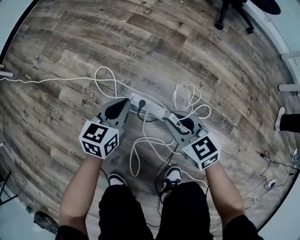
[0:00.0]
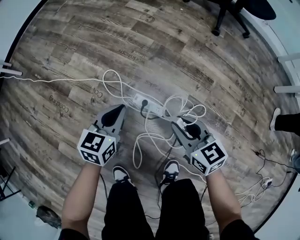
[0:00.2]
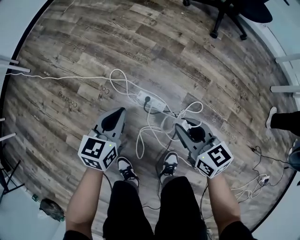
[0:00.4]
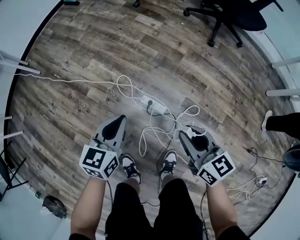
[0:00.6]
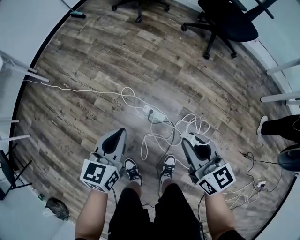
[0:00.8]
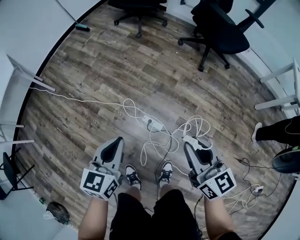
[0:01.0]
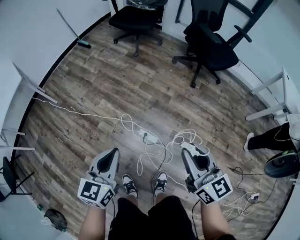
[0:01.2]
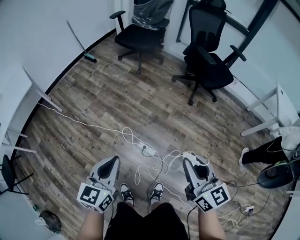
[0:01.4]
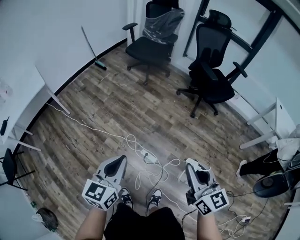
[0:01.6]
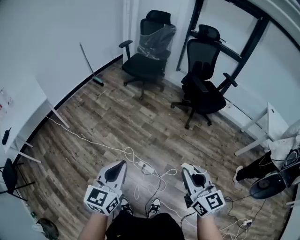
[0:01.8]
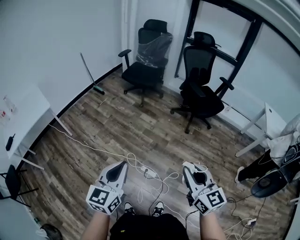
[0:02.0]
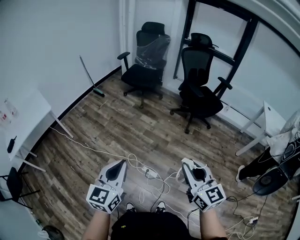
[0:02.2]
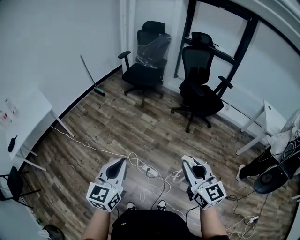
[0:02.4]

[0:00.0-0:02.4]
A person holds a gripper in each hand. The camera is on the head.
0:00.0 to 0:01.2: Both grippers move upward, approximately 70 cm. The right gripper swivels approximately 30 degrees.
0:01.2 to 0:02.4: The grippers both shift upward by approximately 25 cm.

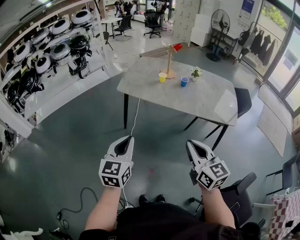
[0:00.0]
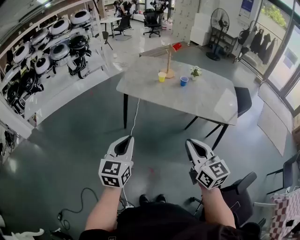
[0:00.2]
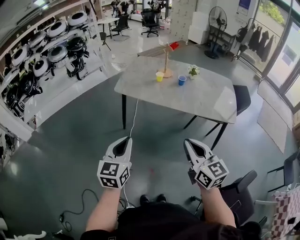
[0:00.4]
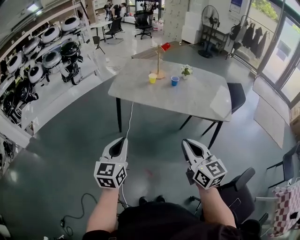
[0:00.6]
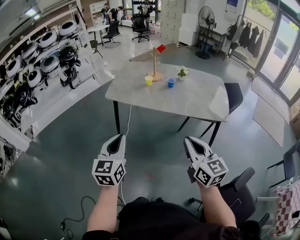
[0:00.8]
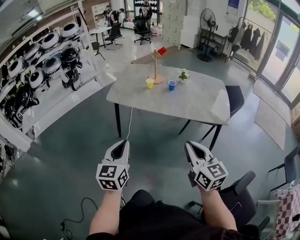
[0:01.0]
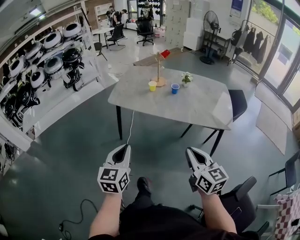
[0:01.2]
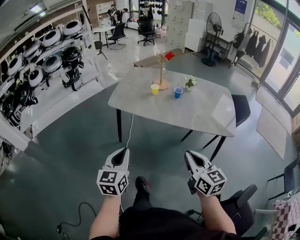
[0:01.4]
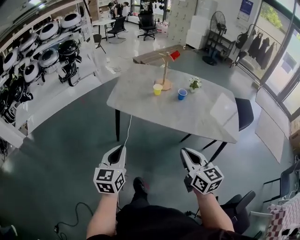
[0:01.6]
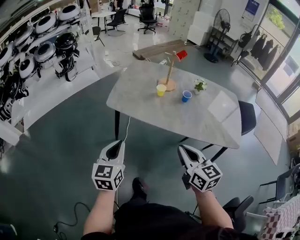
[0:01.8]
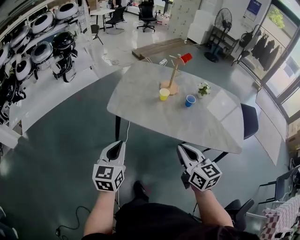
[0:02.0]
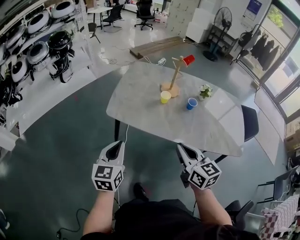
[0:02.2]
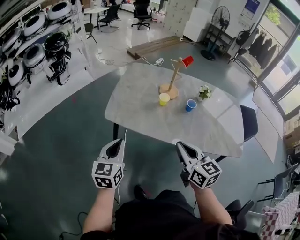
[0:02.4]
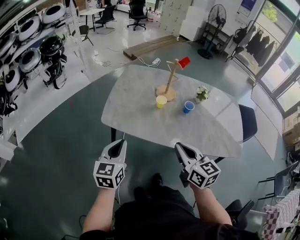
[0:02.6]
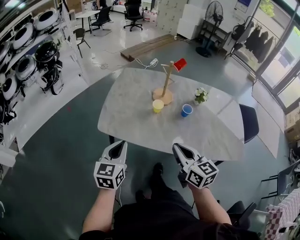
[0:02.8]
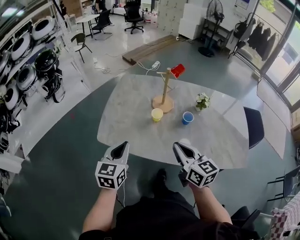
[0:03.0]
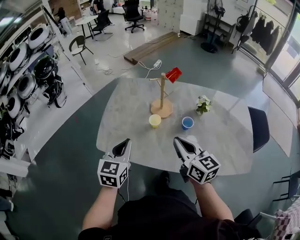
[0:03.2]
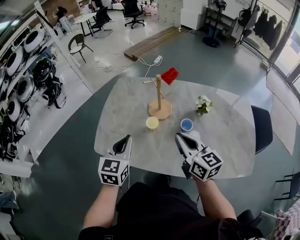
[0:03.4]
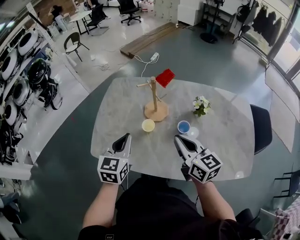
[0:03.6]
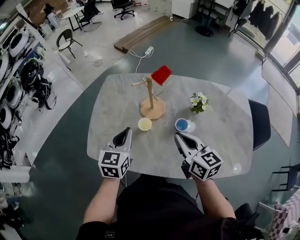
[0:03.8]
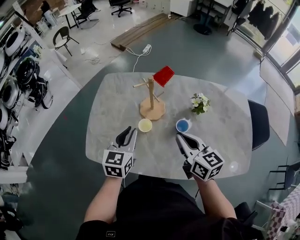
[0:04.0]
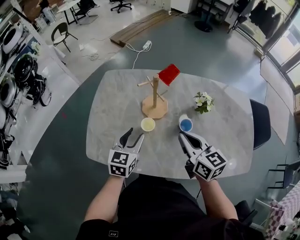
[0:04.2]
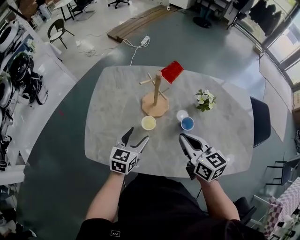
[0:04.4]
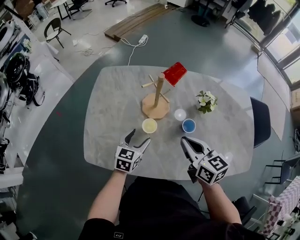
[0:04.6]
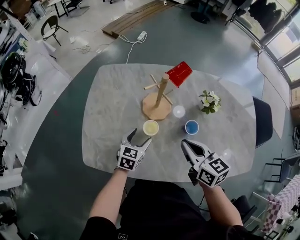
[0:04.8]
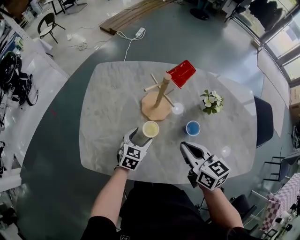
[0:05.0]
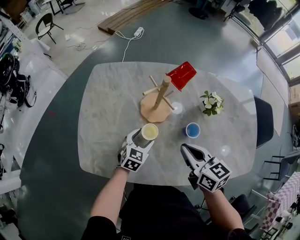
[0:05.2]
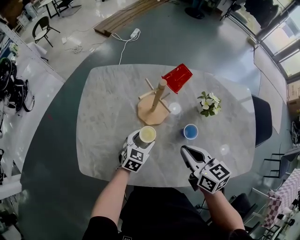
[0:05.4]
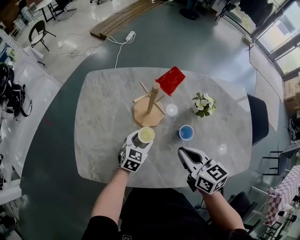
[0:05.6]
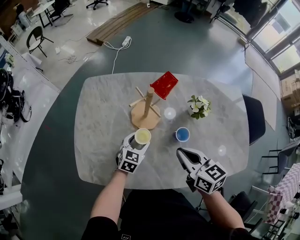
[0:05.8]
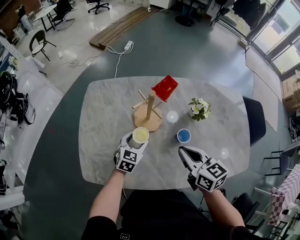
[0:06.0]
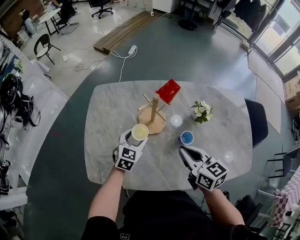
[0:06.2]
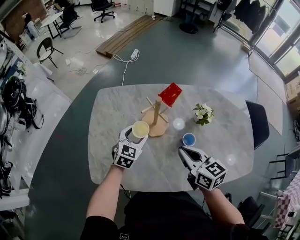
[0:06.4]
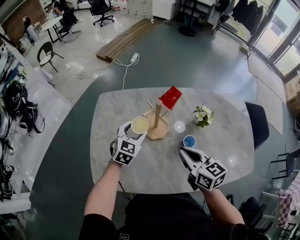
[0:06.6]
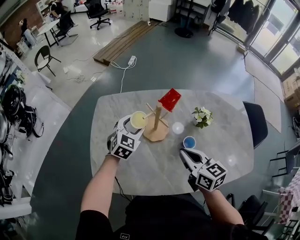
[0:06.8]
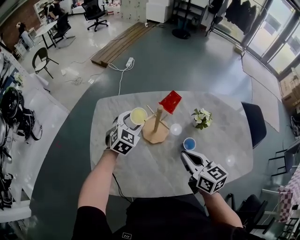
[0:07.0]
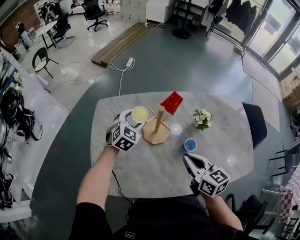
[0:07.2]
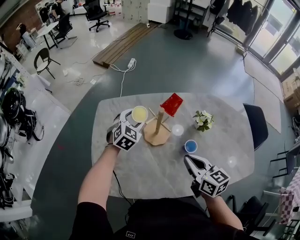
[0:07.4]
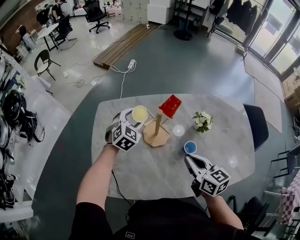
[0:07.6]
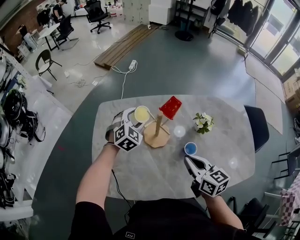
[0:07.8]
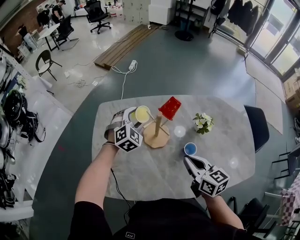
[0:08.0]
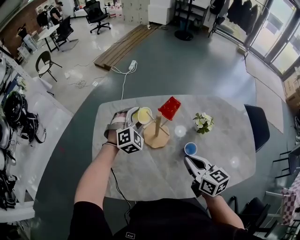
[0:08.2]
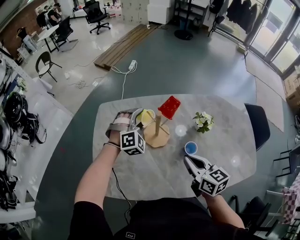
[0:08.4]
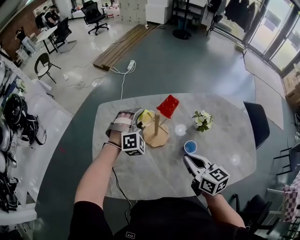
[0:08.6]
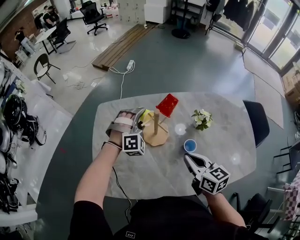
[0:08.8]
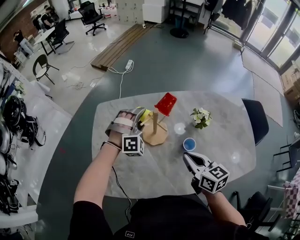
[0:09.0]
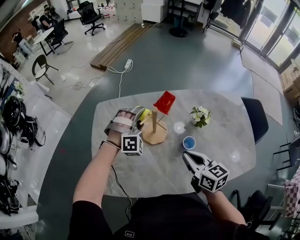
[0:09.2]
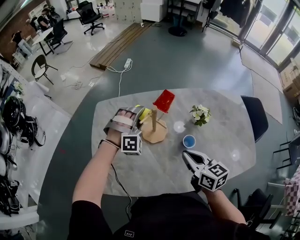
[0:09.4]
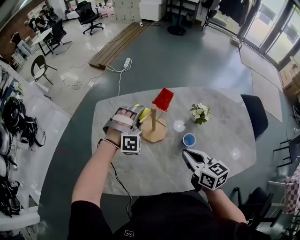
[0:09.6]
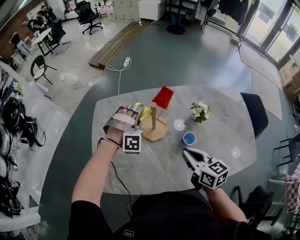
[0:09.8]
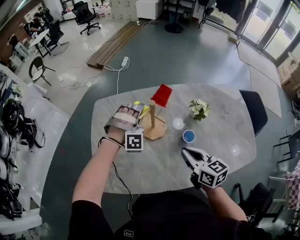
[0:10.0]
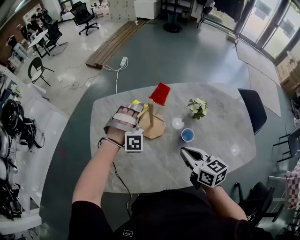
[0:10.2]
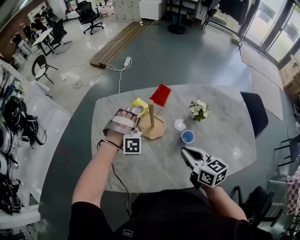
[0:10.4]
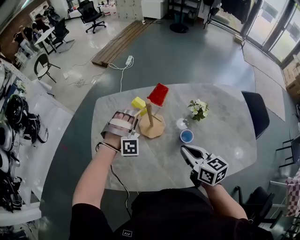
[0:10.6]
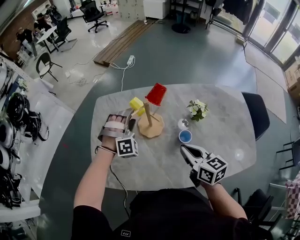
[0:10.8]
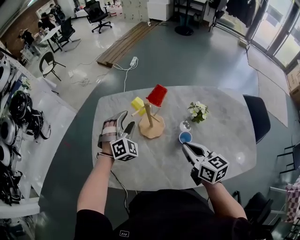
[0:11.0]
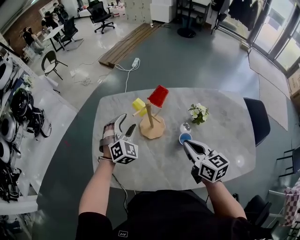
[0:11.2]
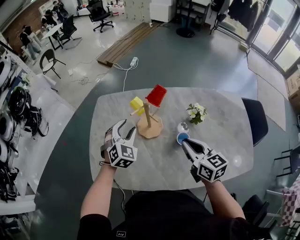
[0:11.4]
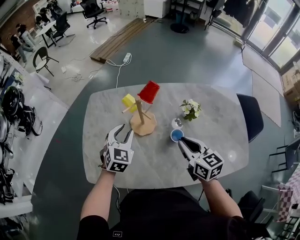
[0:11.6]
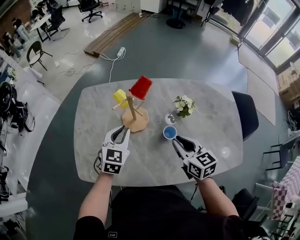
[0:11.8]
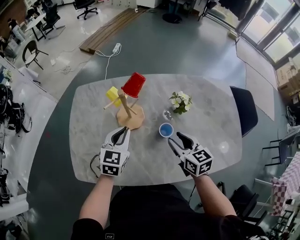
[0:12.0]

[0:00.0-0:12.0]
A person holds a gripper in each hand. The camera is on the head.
0:00.0 to 0:01.6: The grippers both shift forward by about 15 cm.
0:01.6 to 0:03.0: The grippers both shift forward by roughly 35 cm.
0:03.0 to 0:04.4: The left gripper travels forward, downward and to the right by roughly 25 cm, and opens its fingers, while the right gripper travels forward and to the right by about 20 cm.
0:04.4 to 0:06.0: The left gripper shifts roughly 10 cm downward and forward.
0:06.0 to 0:07.6: The left gripper travels forward and upward by roughly 20 cm, and swivels approximately 30 degrees.
0:07.6 to 0:09.0: The left gripper moves about 5 cm, and twists approximately 50 degrees clockwise, seen from behind.
0:09.0 to 0:10.4: The left gripper rotates about 30 degrees.
0:10.4 to 0:12.0: The right gripper moves to the right and downward, some 10 cm, and opens up; the left gripper goes about 10 cm backward, rotates around the line of its fingers by approximately 100 degrees, counterclockwise from behind, and closes up.

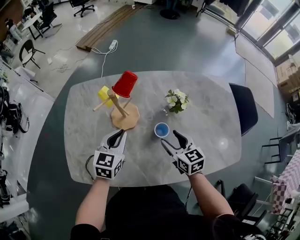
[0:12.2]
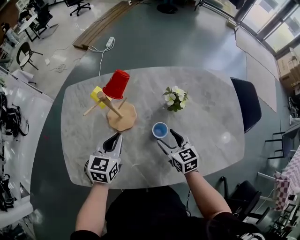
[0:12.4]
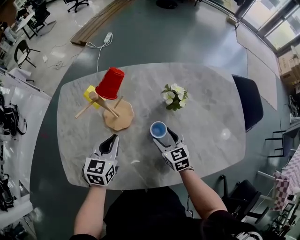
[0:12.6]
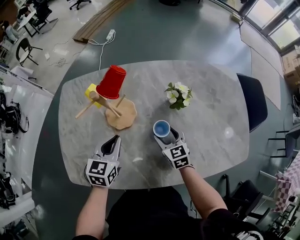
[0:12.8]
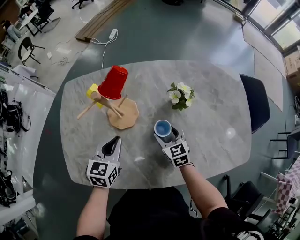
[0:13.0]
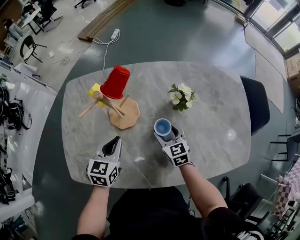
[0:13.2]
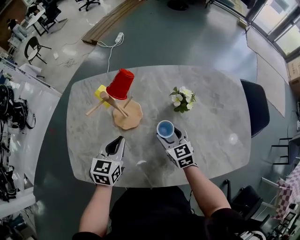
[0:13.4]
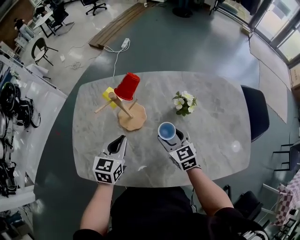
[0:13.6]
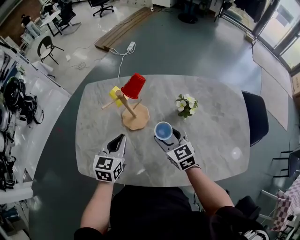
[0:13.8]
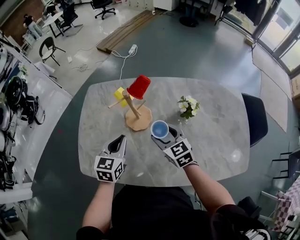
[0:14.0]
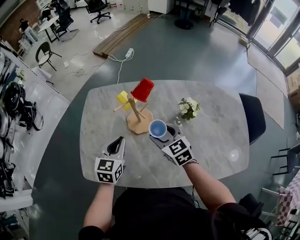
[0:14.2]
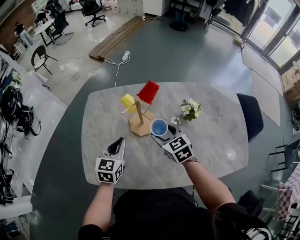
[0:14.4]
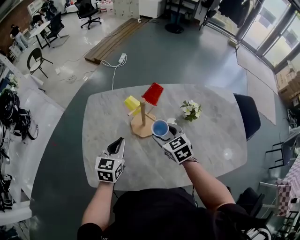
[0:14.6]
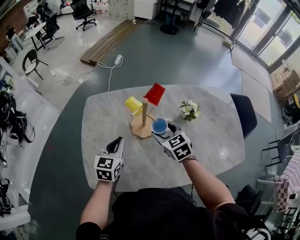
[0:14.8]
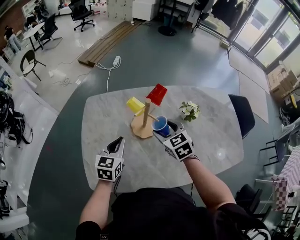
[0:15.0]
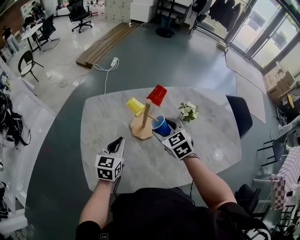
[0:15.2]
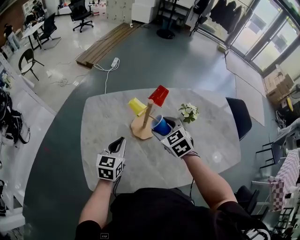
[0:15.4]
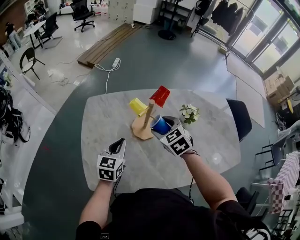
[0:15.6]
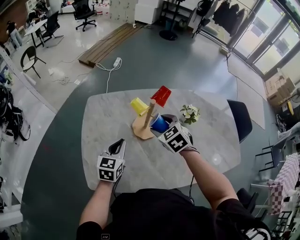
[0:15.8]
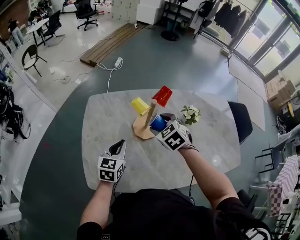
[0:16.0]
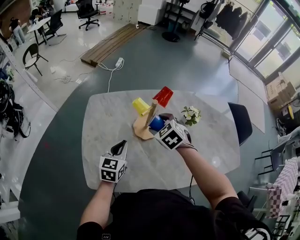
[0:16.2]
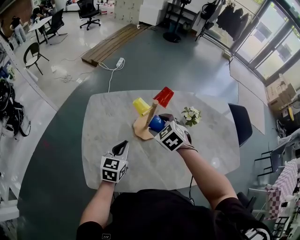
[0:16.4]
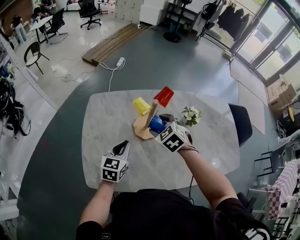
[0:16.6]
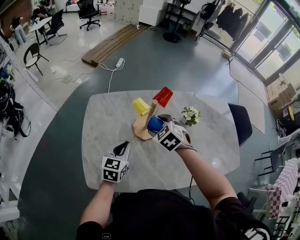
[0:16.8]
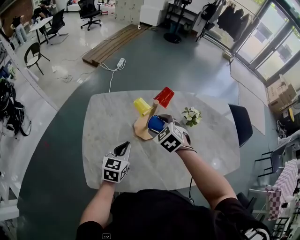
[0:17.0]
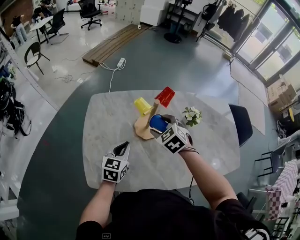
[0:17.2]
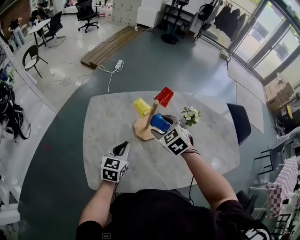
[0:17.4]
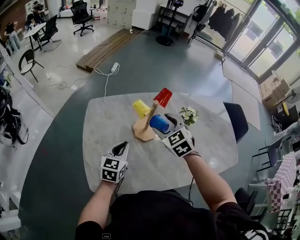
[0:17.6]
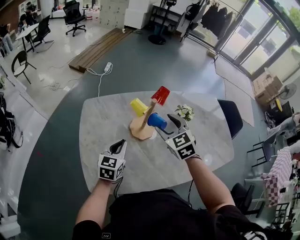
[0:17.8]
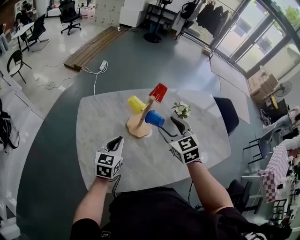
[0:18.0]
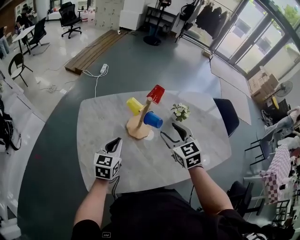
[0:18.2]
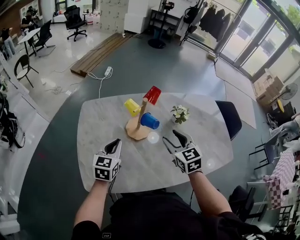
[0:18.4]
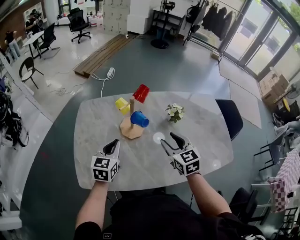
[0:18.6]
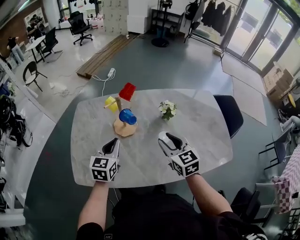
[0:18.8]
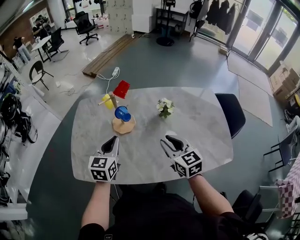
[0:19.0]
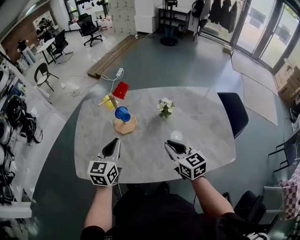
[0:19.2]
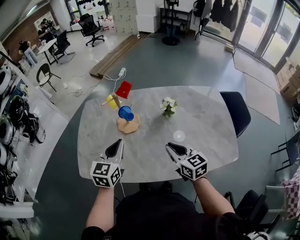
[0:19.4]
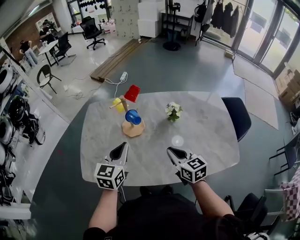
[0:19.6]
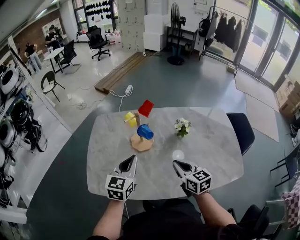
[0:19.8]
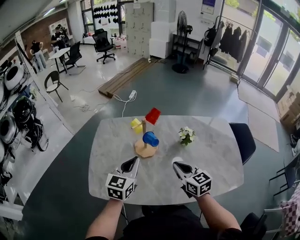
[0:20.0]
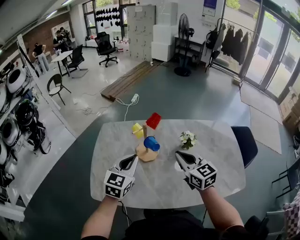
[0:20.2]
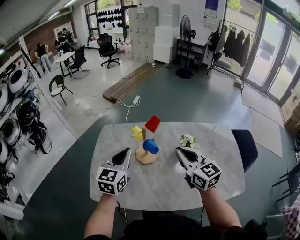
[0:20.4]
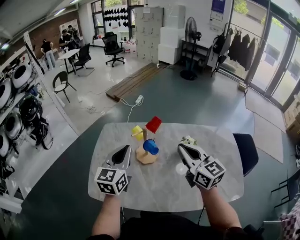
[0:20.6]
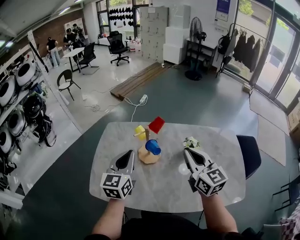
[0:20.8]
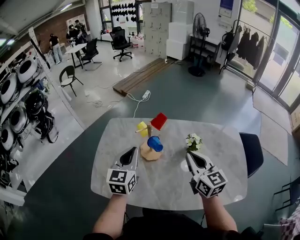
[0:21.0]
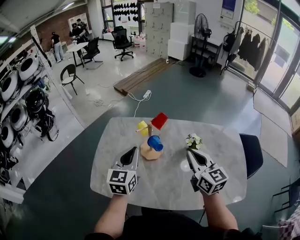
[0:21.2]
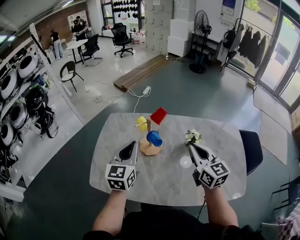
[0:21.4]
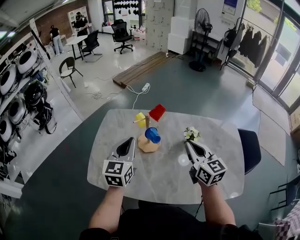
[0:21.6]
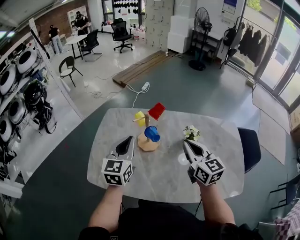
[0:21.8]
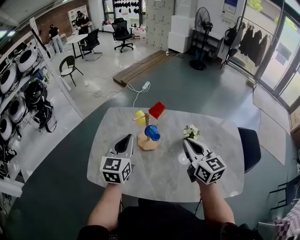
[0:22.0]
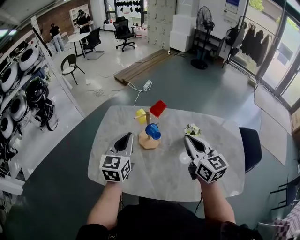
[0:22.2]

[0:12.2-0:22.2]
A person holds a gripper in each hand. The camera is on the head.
0:12.2 to 0:13.6: The right gripper reaches approximately 10 cm downward, then returns.
0:13.6 to 0:15.0: The left gripper goes roughly 10 cm to the left, while the right gripper travels to the left and upward by some 15 cm.
0:15.0 to 0:16.4: The right gripper changes its angle by roughly 20 degrees.
0:16.4 to 0:18.0: The right gripper shifts approximately 10 cm upward, and turns by roughly 30 degrees.
0:18.0 to 0:19.4: The left gripper heads to the right, upward and backward, covering approximately 20 cm; the right gripper heads to the right and backward, covering roughly 25 cm, changes its angle by about 30 degrees, and closes up.
0:19.4 to 0:20.8: The right gripper travels upward and forward by some 20 cm. The left gripper goes about 10 cm forward, upward and to the left.
0:20.8 to 0:22.2: The grippers stay close to where they were, moving slightly.
